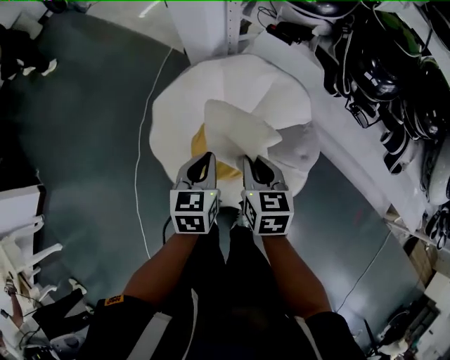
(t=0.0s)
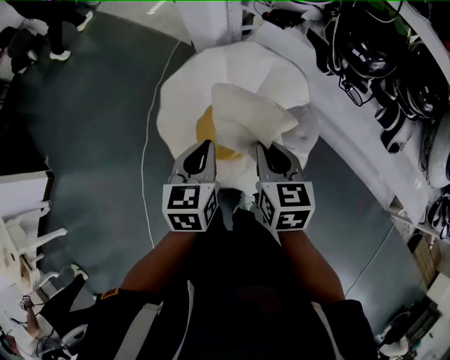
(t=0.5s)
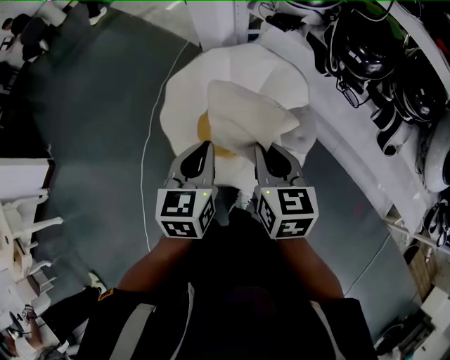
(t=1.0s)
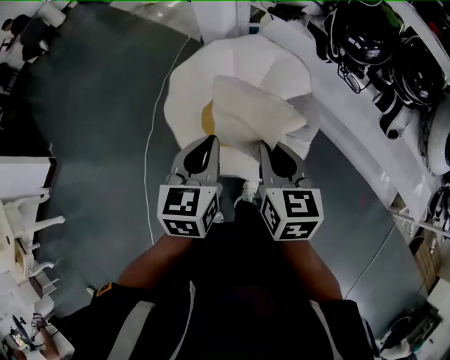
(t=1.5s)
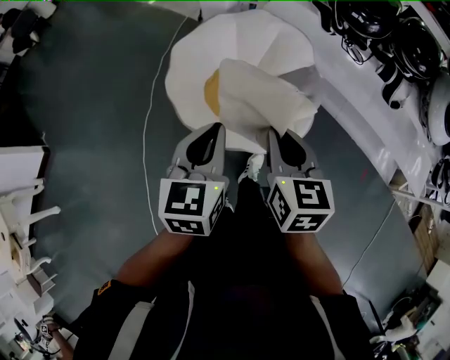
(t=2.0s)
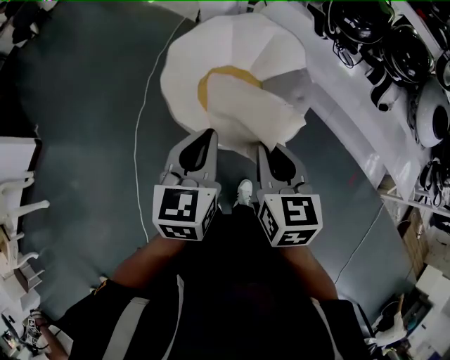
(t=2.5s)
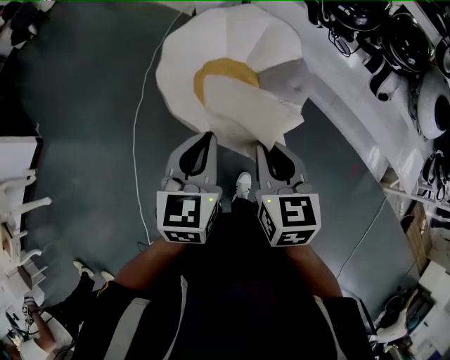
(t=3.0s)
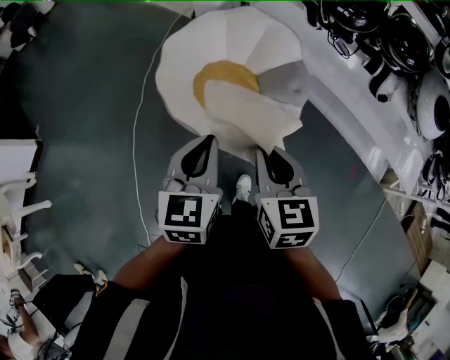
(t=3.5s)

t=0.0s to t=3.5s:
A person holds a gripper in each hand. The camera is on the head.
t=0.0s to t=2.0s: The two grippers go about 30 cm backward and upward.
t=2.0s to t=3.5s: The grippers both shift backward by roughly 5 cm.

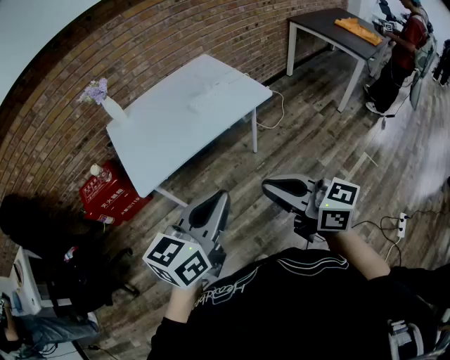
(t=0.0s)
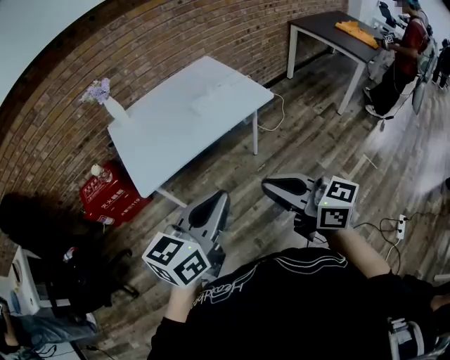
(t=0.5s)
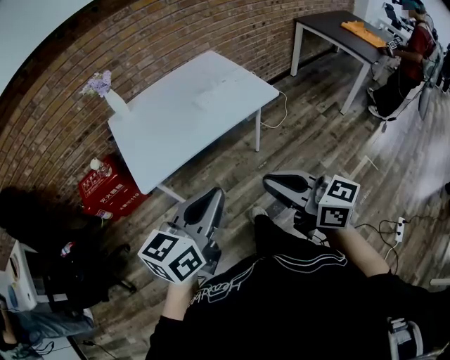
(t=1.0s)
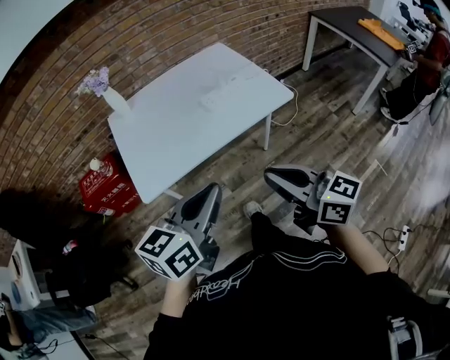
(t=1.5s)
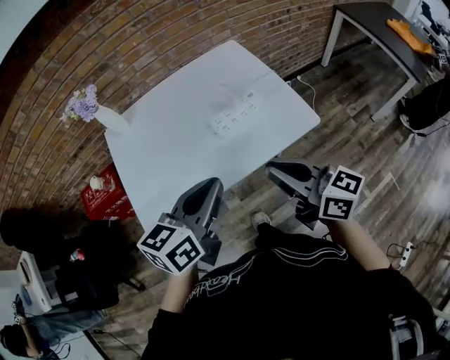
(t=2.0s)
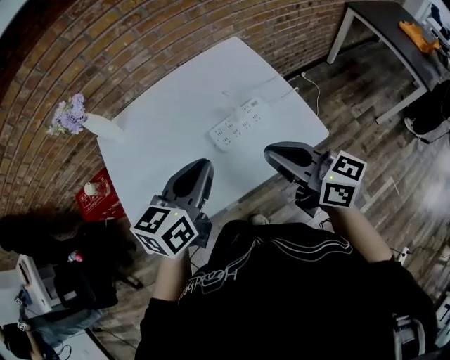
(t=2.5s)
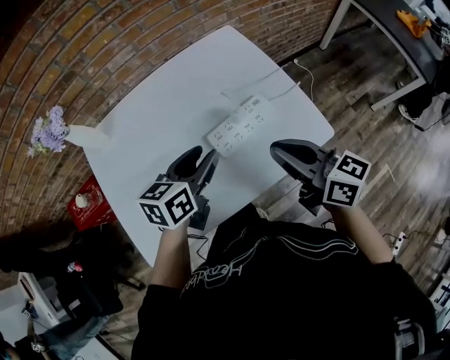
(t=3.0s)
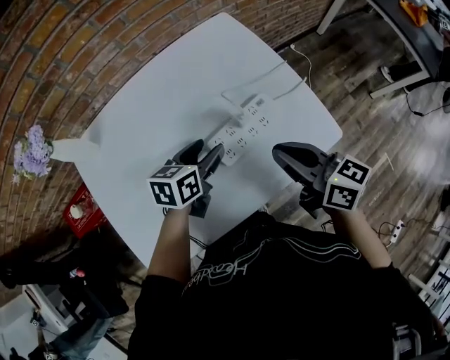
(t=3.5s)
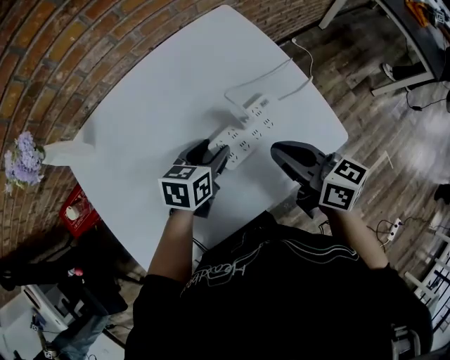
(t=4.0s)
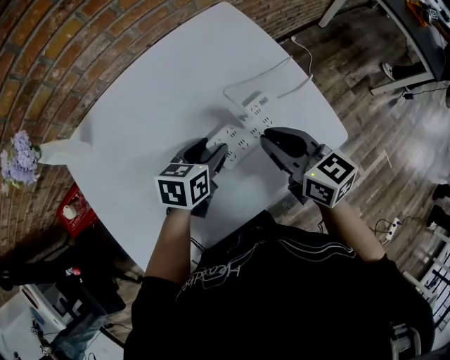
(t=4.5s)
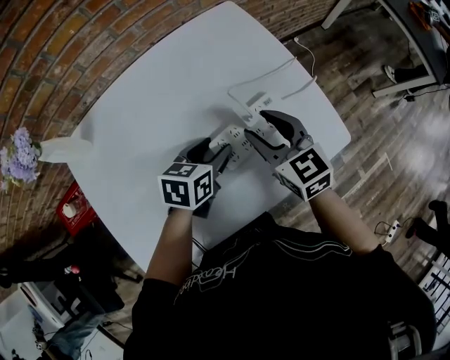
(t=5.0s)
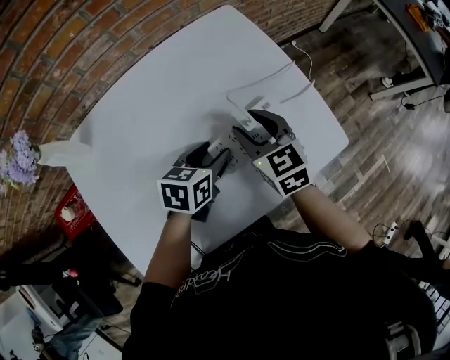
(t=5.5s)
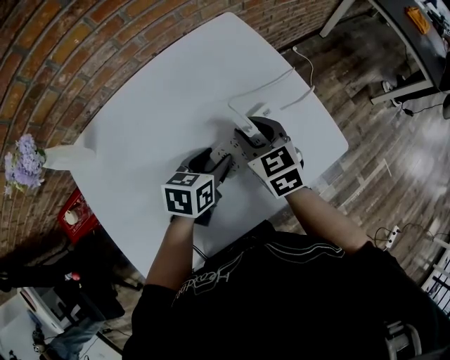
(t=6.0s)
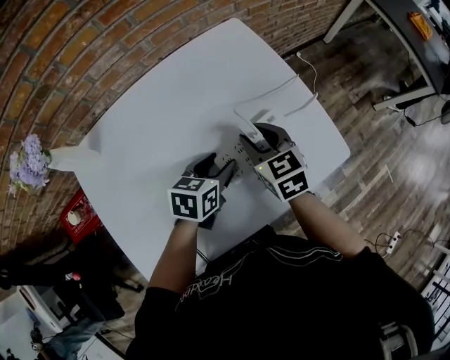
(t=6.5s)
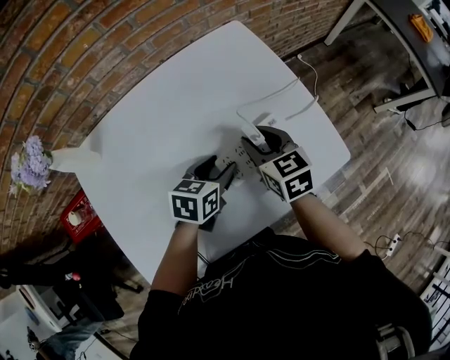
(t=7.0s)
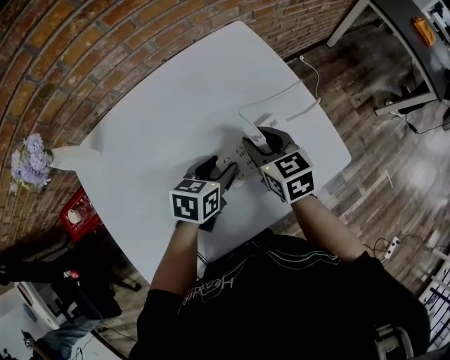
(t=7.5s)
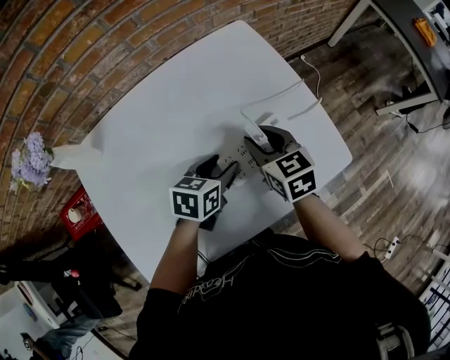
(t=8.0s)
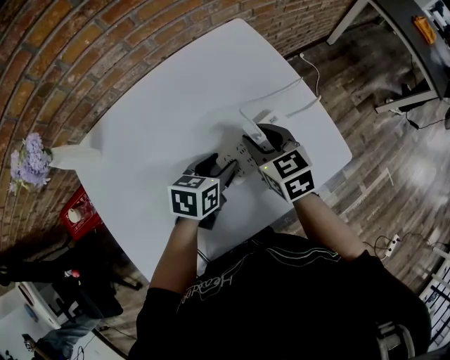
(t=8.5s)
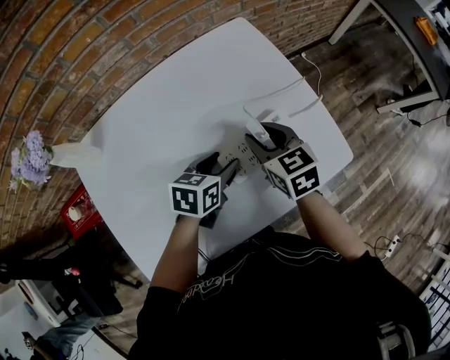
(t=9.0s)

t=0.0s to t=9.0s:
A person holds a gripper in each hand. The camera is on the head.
t=0.0s to t=2.0s: Both grippers travel together forward, some 35 cm.
t=2.0s to t=4.5s: The grippers both shift forward and downward by approximately 35 cm. The left gripper changes its angle by roughly 30 degrees, and opens, while the right gripper turns by roughly 20 degrees.
t=4.5s to t=7.0s: The right gripper heads forward, covering some 5 cm, and opens its fingers.
t=7.0s to t=9.0s: The grippers stay close to where they were, moving slightly.

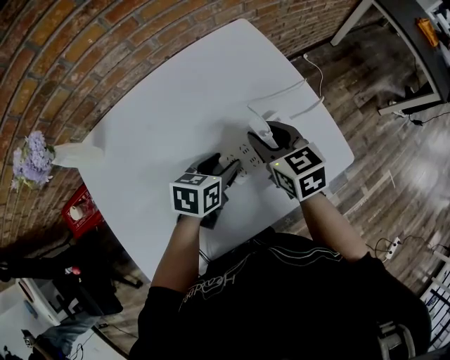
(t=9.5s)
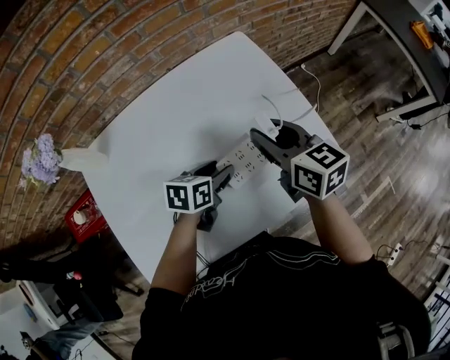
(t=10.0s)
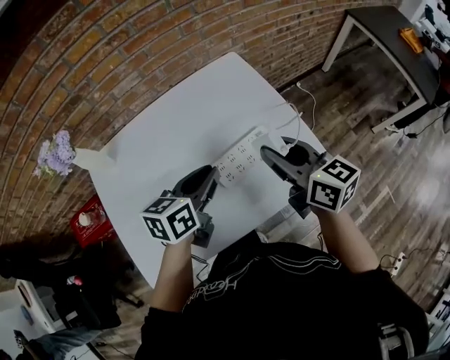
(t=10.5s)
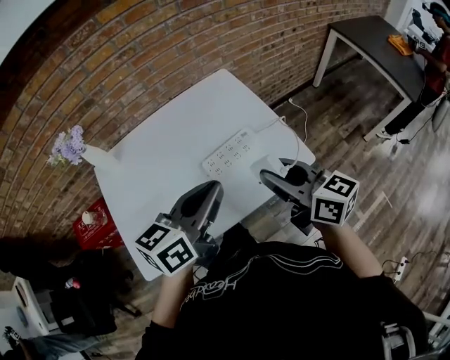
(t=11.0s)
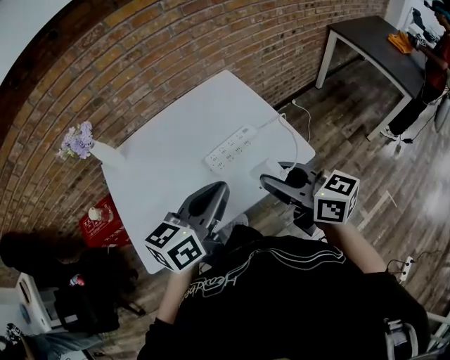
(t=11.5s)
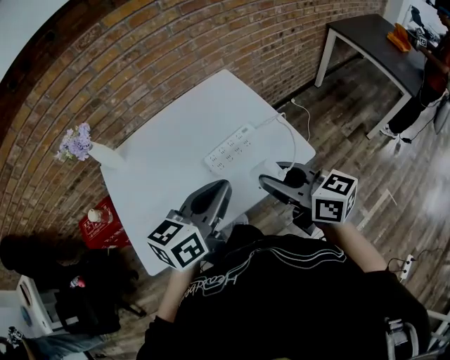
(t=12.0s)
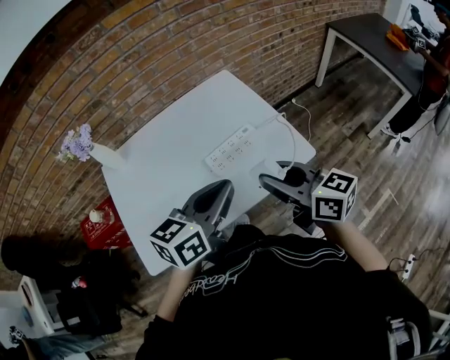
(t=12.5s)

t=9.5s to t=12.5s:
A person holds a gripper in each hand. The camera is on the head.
t=9.5s to t=11.0s: The left gripper travels upward and backward by some 30 cm, tips its fingers upward by roughly 30 degrees, and closes its fingers. The right gripper travels backward, upward and to the right by roughly 30 cm, and changes its angle by roughly 30 degrees.
t=11.0s to t=12.5s: There are only small adjustments of the grippers.

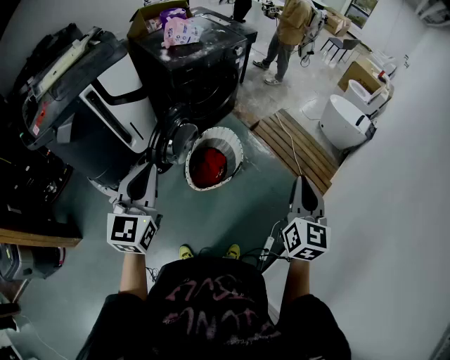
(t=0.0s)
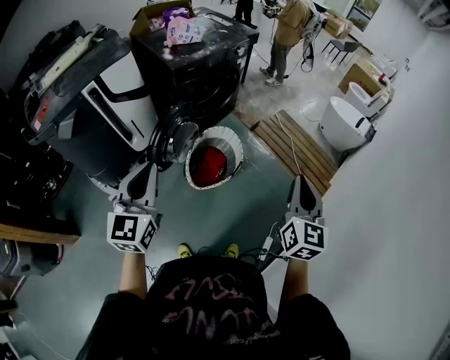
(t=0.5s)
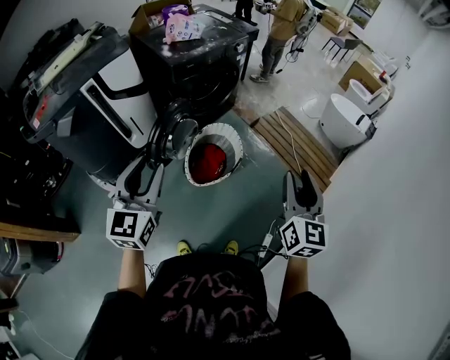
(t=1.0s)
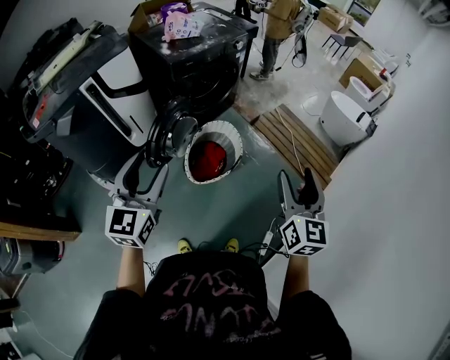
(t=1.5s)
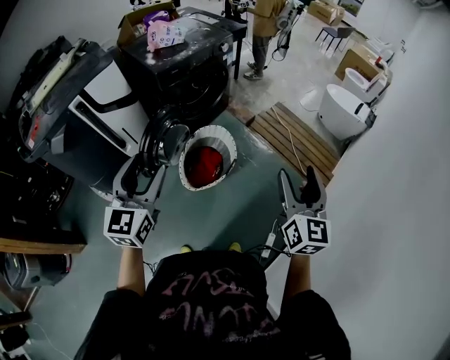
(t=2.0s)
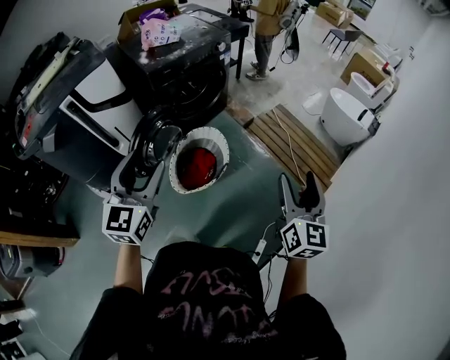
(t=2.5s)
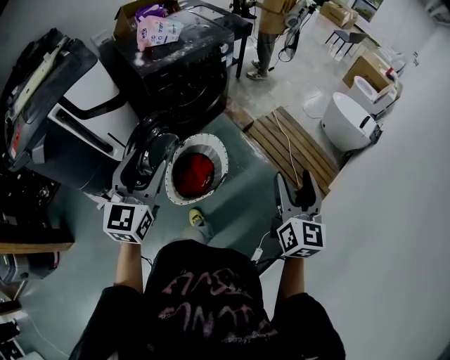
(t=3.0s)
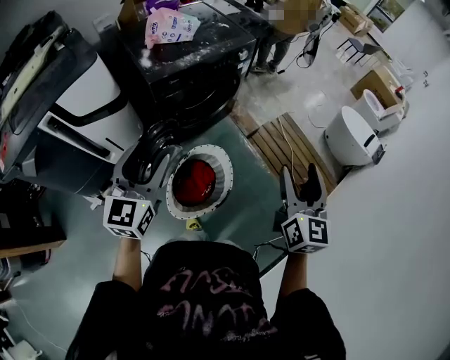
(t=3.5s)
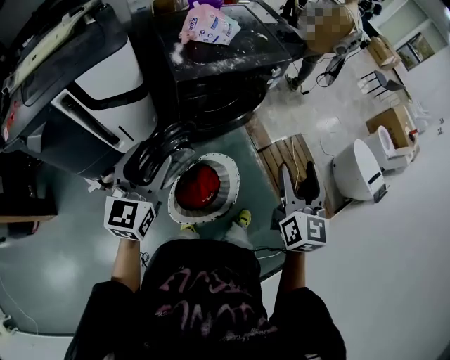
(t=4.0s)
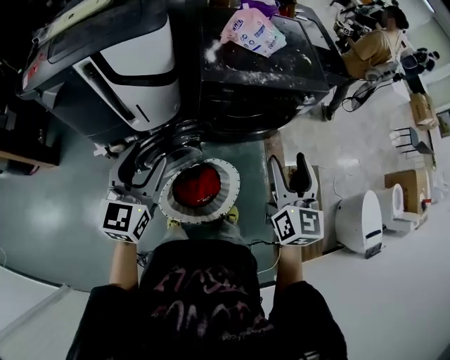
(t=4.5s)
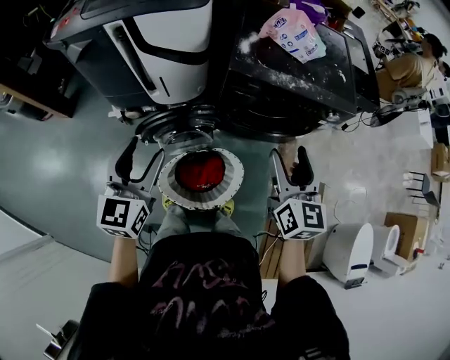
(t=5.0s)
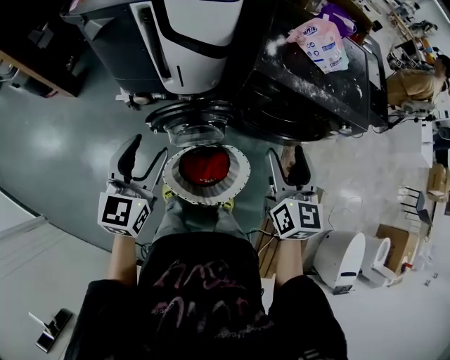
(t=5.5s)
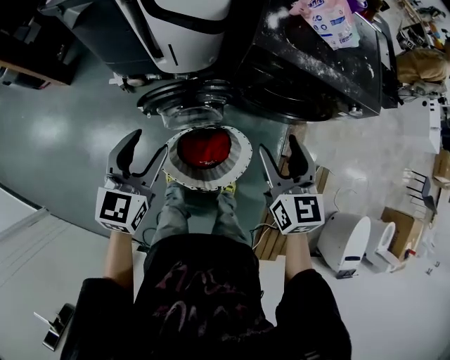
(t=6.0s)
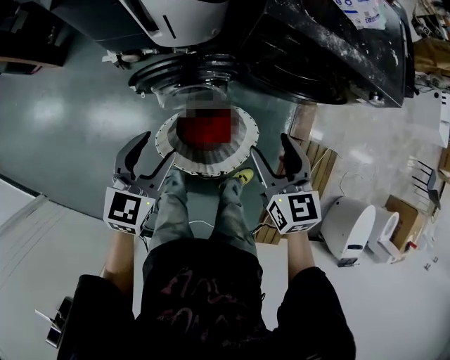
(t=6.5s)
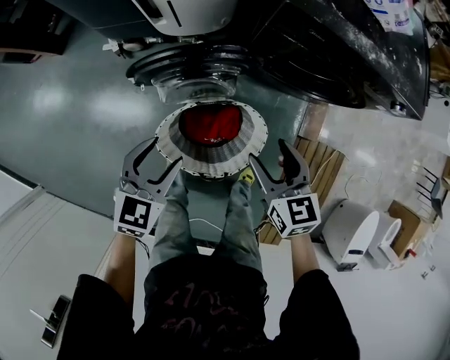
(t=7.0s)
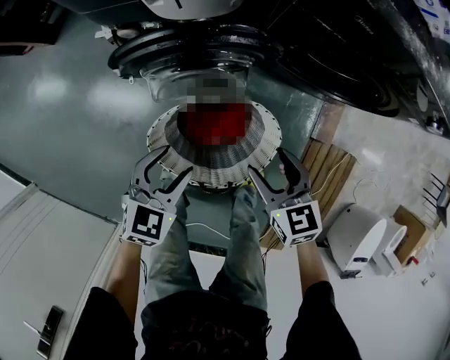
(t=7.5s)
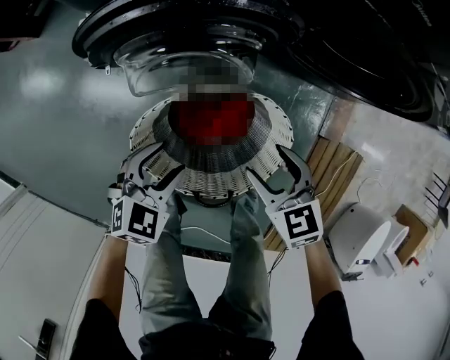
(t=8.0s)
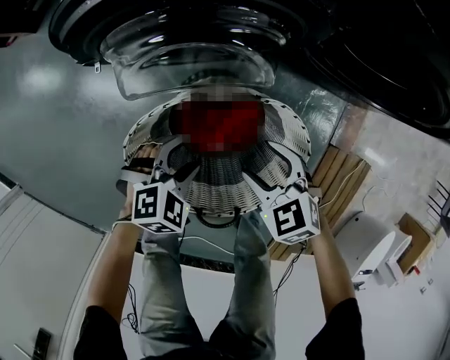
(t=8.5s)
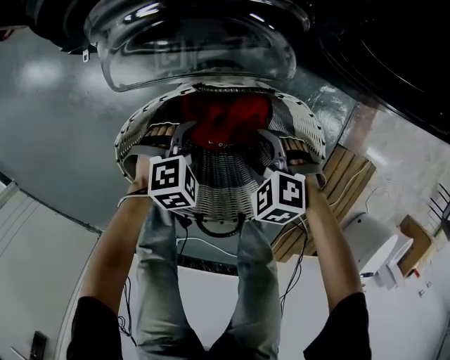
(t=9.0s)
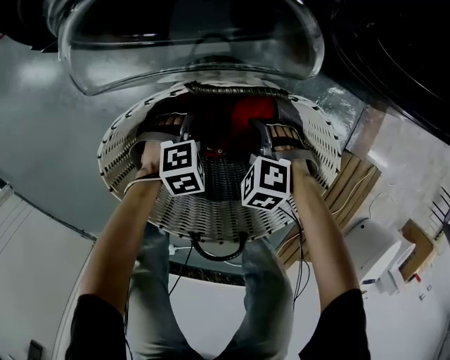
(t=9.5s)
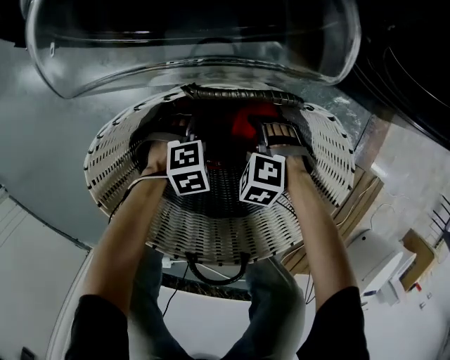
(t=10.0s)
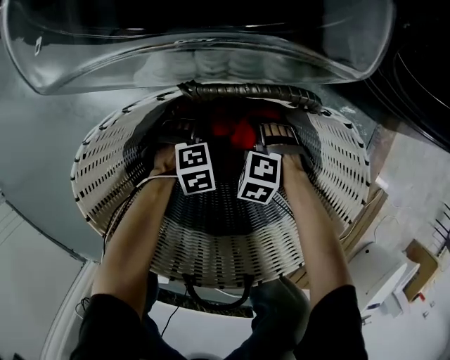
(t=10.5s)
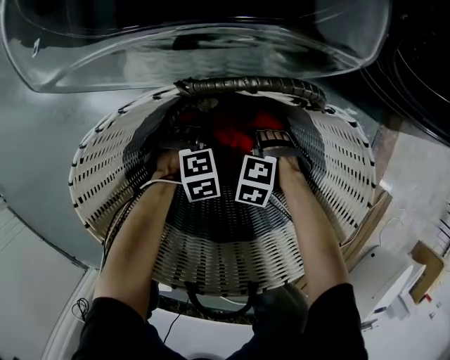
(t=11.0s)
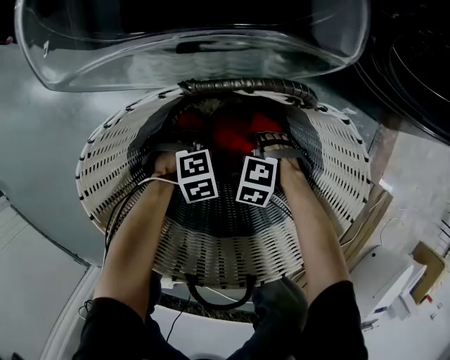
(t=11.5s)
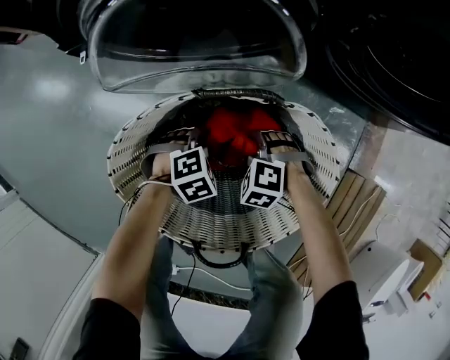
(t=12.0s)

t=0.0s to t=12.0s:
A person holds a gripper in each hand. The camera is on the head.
t=0.0s to t=2.0s: The right gripper opens; the left gripper shifts roughly 5 cm to the right, and opens up.
t=2.0s to t=4.0s: The grippers both shift forward by roughly 35 cm.
t=4.0s to t=6.0s: The right gripper ends up approximately 20 cm from where it was, and rotates about 50 degrees, while the left gripper travels downward by about 10 cm, and rotates some 40 degrees.
t=6.0s to t=8.0s: Both grippers travel together downward, roughly 40 cm. The left gripper turns by about 40 degrees. The right gripper changes its angle by about 40 degrees.
t=8.0s to t=10.0s: The two grippers go about 35 cm downward. The right gripper rotates around the line of its fingers by about 50 degrees, counterclockwise from behind. The left gripper turns by roughly 30 degrees, and opens up.
t=10.0s to t=12.0s: The right gripper closes up. The left gripper is displaced upward by roughly 5 cm, and closes up.
